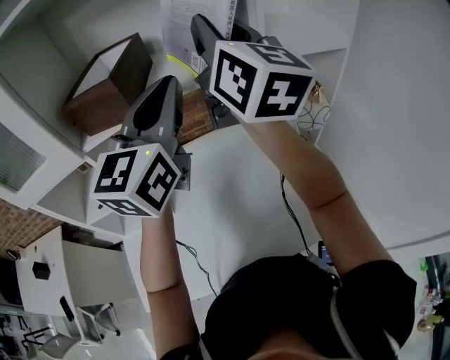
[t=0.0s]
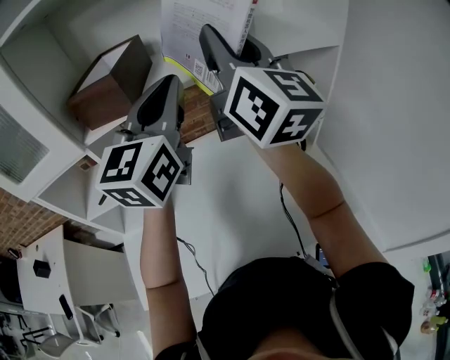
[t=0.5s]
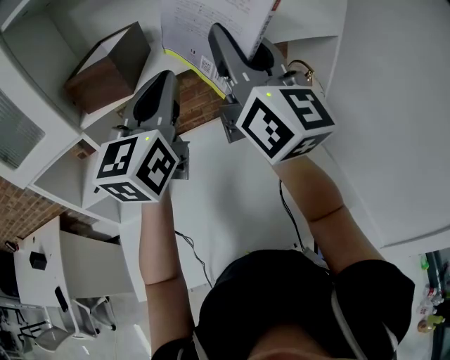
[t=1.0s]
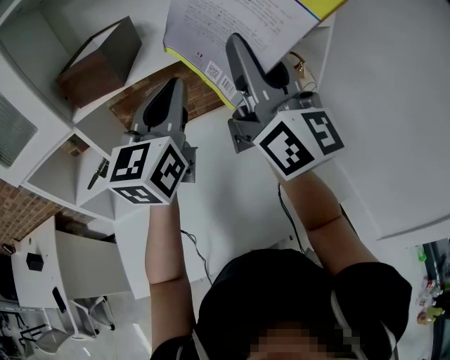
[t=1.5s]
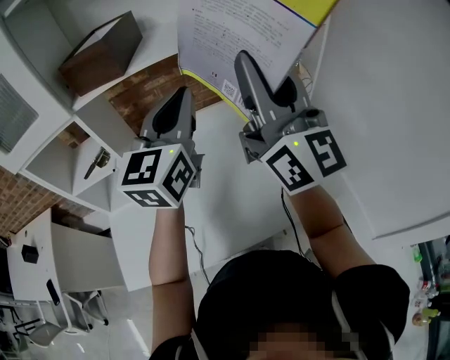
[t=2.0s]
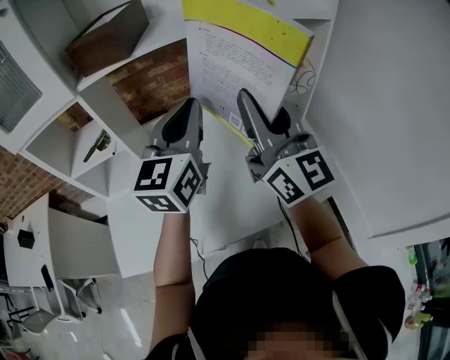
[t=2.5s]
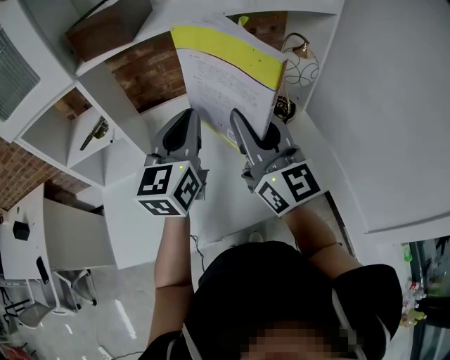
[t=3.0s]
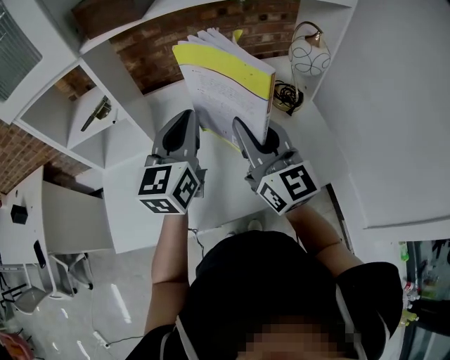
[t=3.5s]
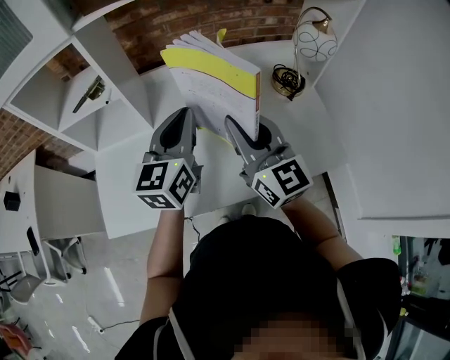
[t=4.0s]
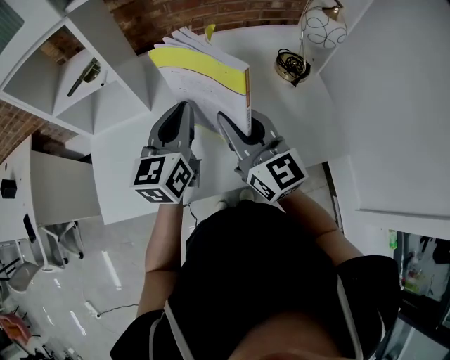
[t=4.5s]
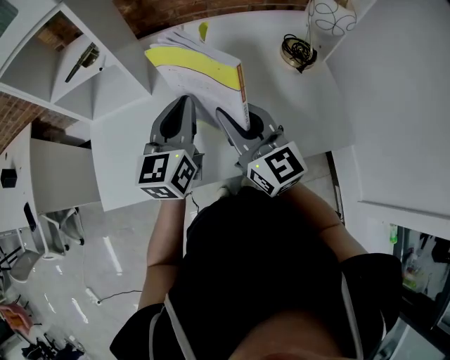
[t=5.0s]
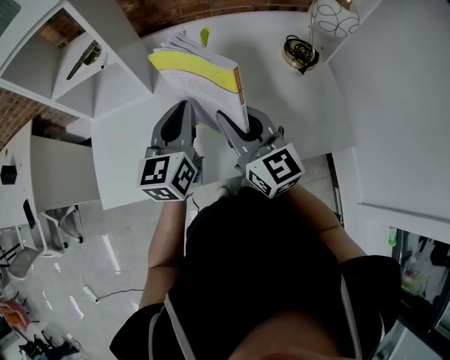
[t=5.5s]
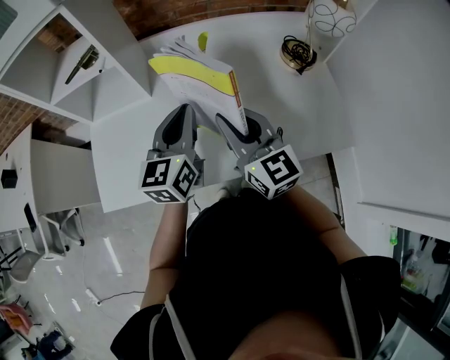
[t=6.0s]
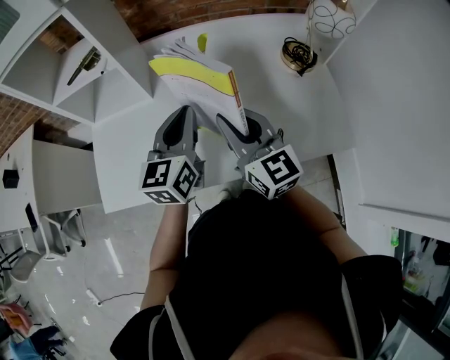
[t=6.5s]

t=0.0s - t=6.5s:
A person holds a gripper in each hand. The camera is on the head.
t=0.0s - t=2.0s: The right gripper heads backward, downward and to the right, covering some 20 cm, while the left gripper goes approximately 10 cm downward and backward.
t=2.0s - t=4.5s: The two grippers go about 25 cm downward. The left gripper turns by approximately 20 degrees. The right gripper tips its fingers downward by about 30 degrees.
t=4.5s - t=6.5s: There are only small adjustments of the grippers.

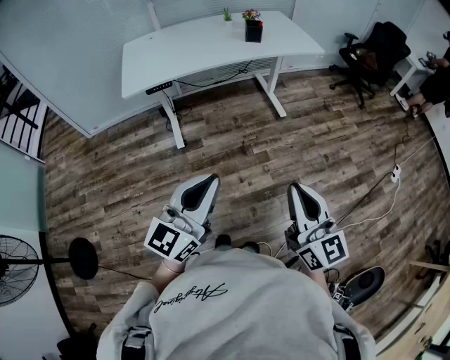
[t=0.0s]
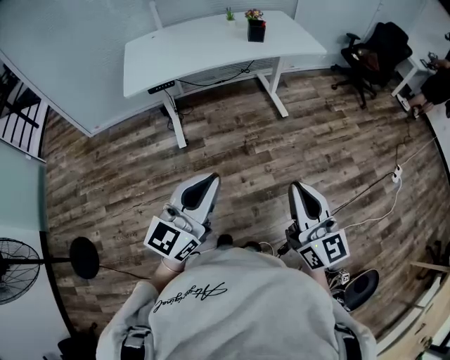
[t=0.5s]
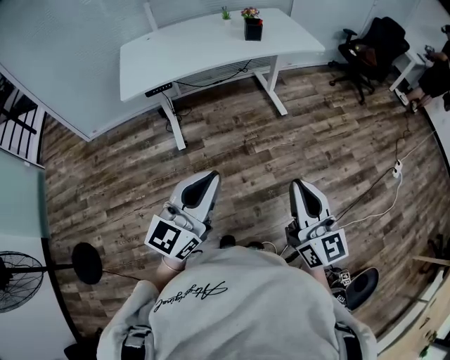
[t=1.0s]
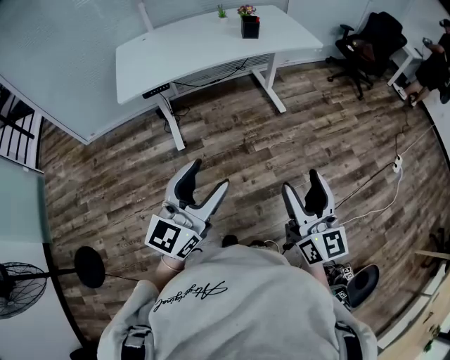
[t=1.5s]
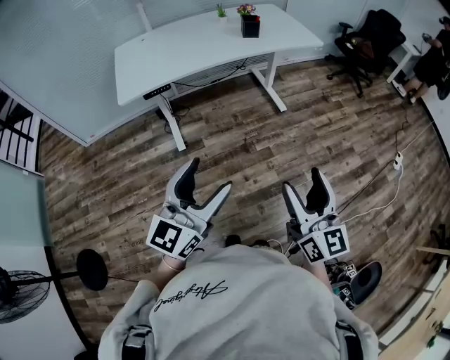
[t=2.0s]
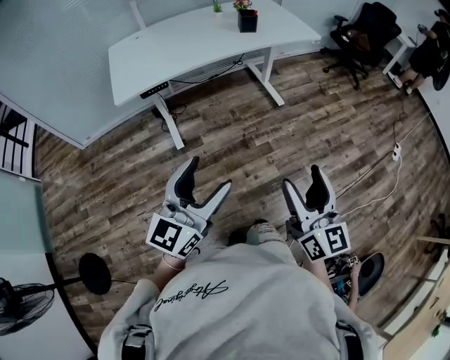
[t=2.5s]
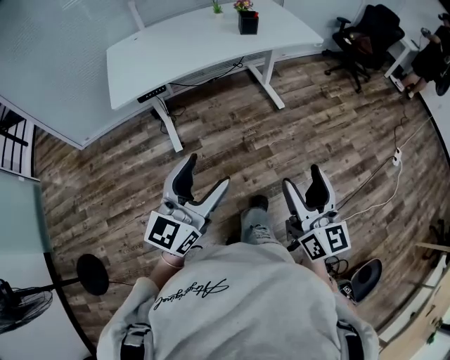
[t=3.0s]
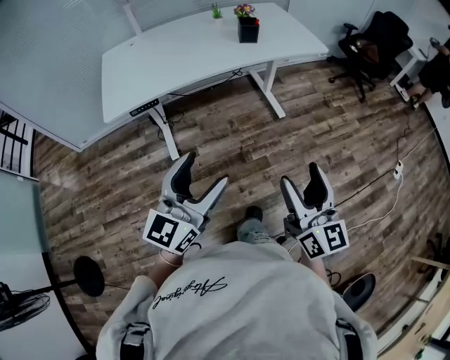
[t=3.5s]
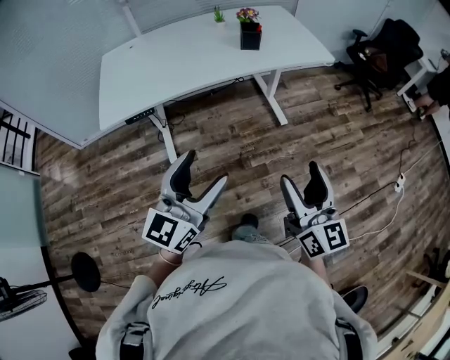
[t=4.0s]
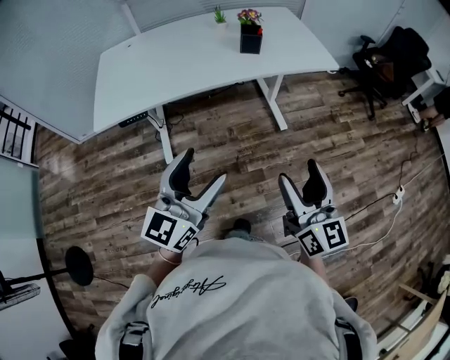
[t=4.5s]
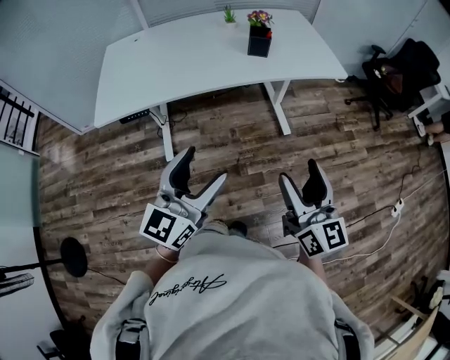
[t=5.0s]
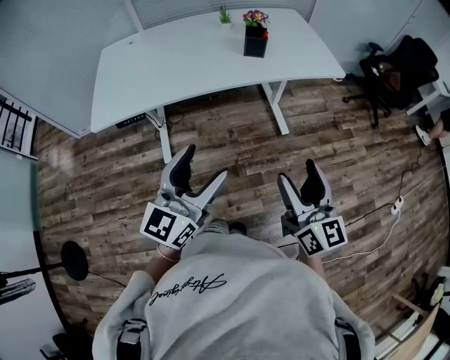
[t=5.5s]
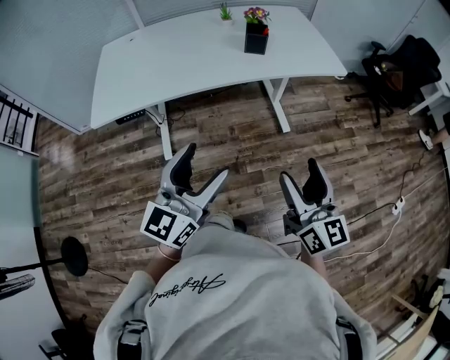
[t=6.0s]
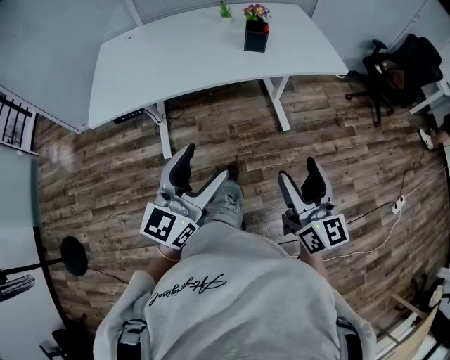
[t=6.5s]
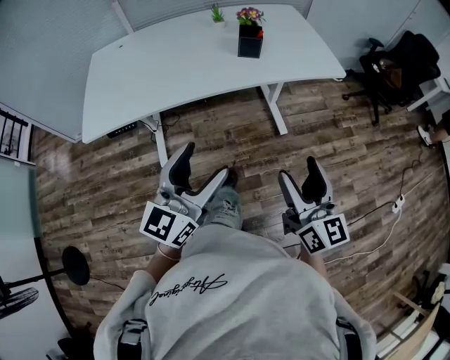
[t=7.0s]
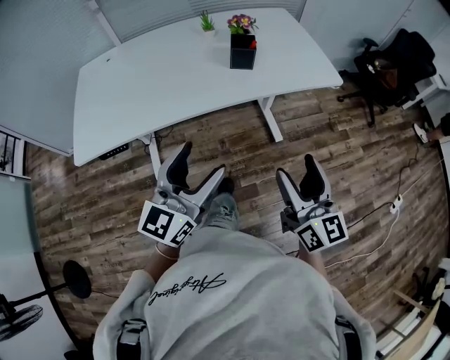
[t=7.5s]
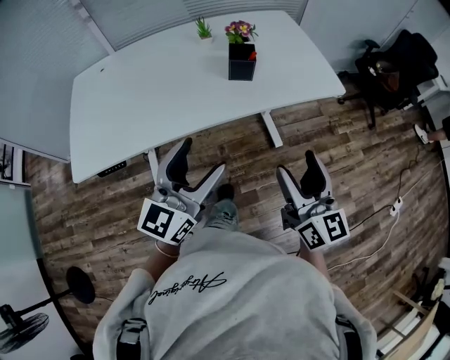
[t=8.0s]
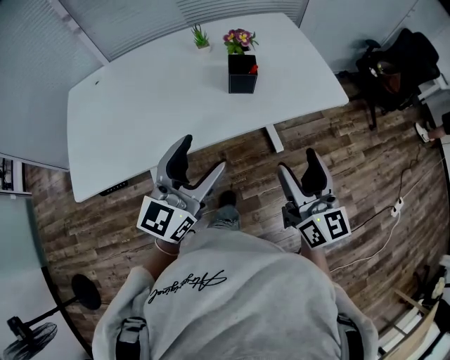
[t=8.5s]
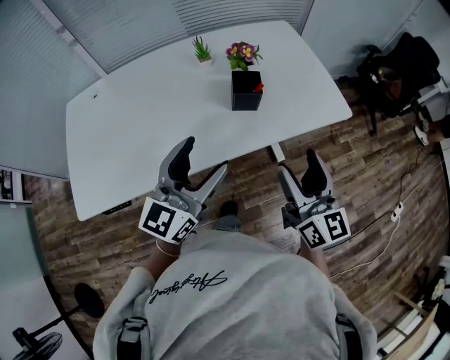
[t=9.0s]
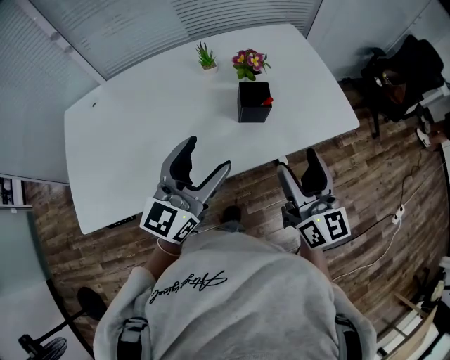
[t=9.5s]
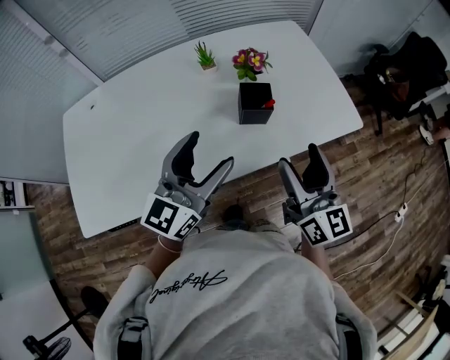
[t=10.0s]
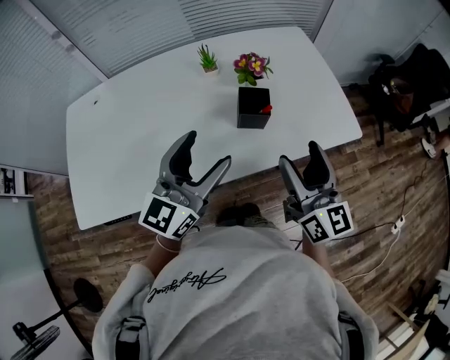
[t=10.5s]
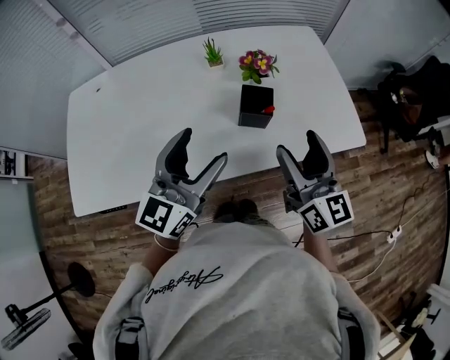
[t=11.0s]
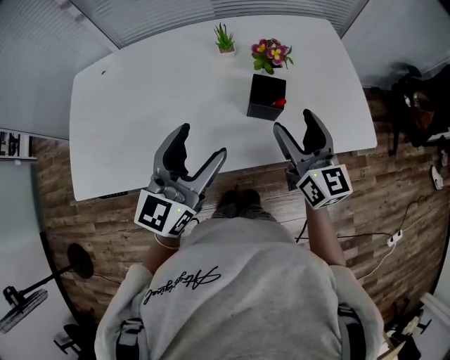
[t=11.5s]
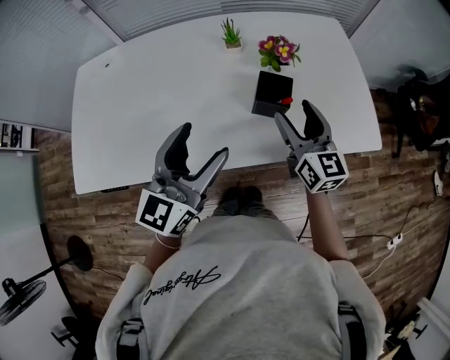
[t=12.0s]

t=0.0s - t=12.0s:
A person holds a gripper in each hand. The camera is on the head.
t=0.0s - t=2.0s: The left gripper changes place by approximately 5 cm, and opens; the right gripper moves roughly 5 cm, and opens its fingers.
t=2.0s - t=4.0s: The grippers both shift forward by roughly 20 cm.
t=4.0s - t=6.0s: The two grippers go roughly 10 cm forward.
t=6.0s - t=8.0s: The grippers both shift forward by about 20 cm.
t=8.0s - t=10.0s: Both grippers travel together forward, approximately 20 cm.
t=10.0s - t=12.0s: The right gripper shifts about 15 cm forward and downward.

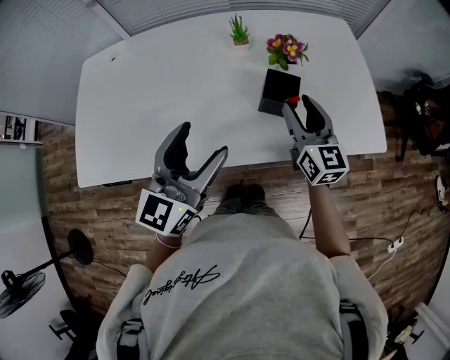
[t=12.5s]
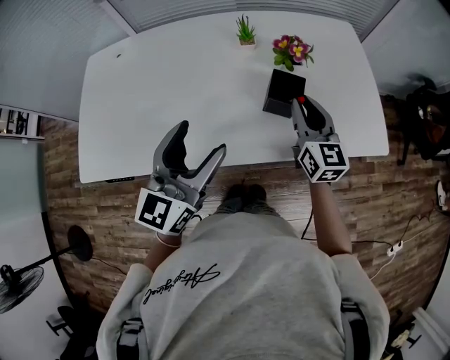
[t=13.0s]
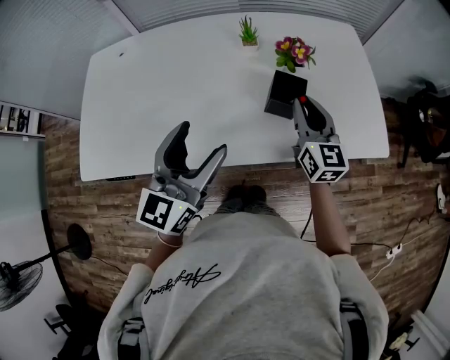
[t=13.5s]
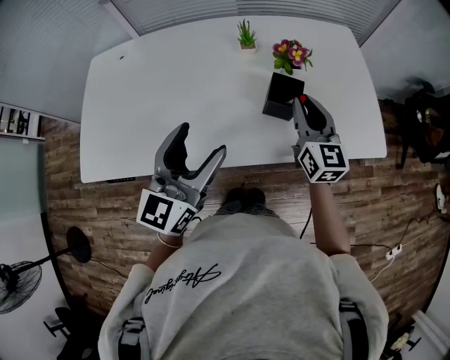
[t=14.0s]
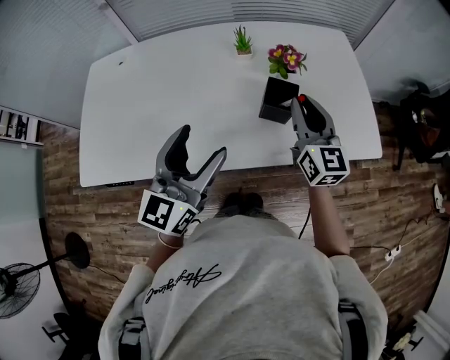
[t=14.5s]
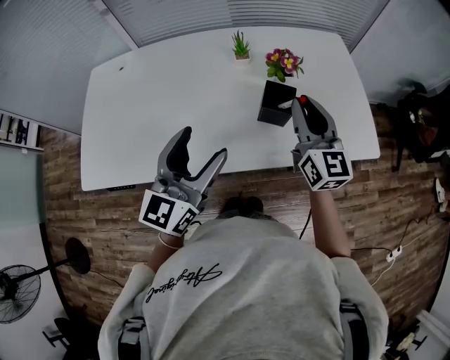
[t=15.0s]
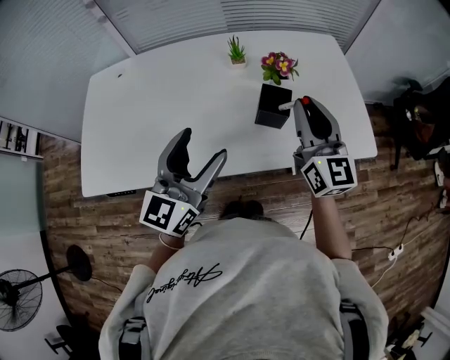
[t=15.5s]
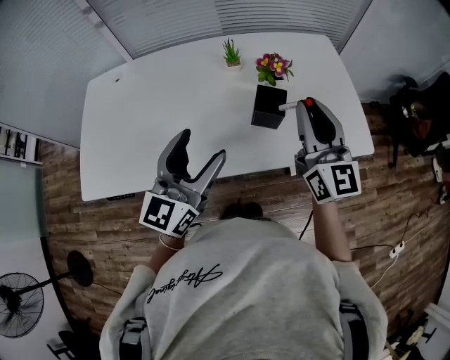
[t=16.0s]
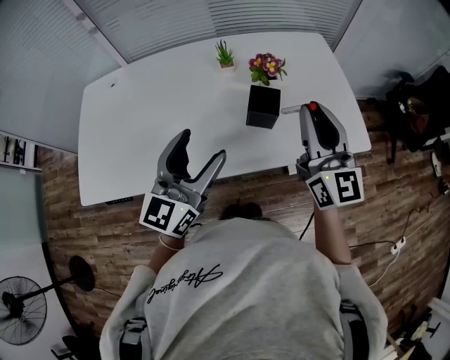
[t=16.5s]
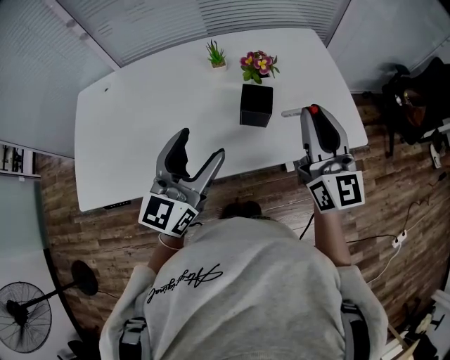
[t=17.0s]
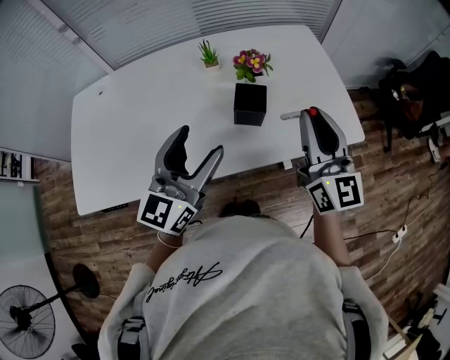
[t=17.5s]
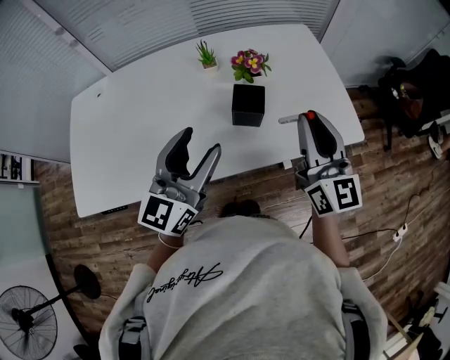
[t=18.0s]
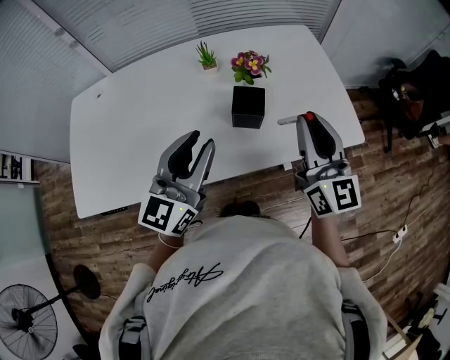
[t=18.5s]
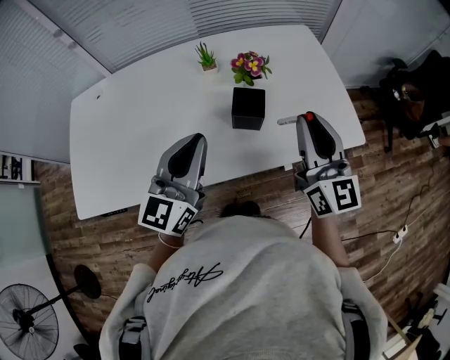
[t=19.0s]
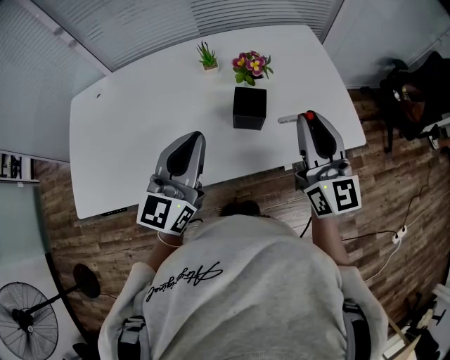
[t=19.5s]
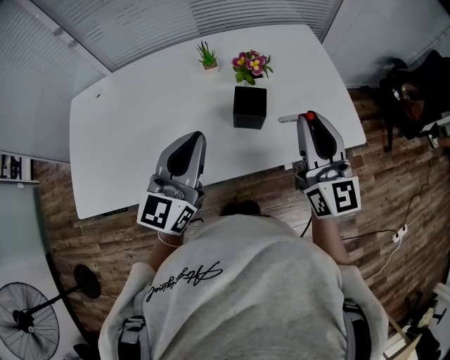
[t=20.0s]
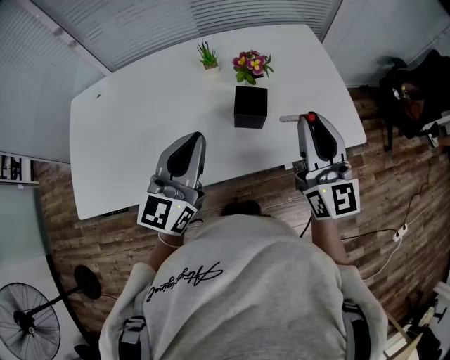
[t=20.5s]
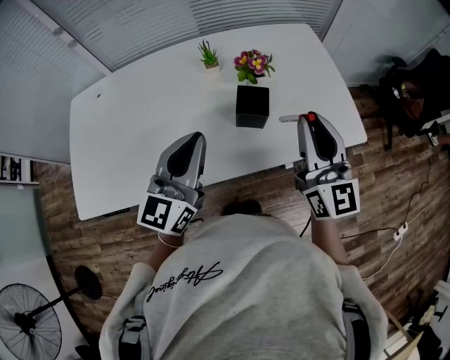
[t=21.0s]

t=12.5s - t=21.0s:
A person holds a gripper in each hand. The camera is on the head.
t=12.5s - t=14.5s: The right gripper closes.
t=14.5s - t=16.5s: The right gripper goes roughly 10 cm upward and backward.
t=16.5s - t=19.0s: The left gripper closes up.
t=19.0s - t=21.0s: The grippers move only a little.
